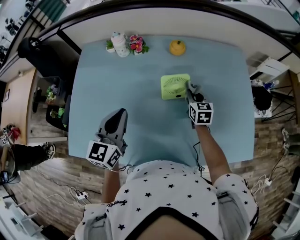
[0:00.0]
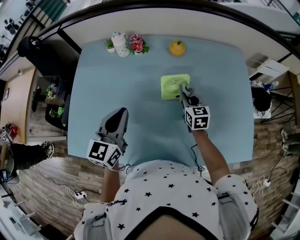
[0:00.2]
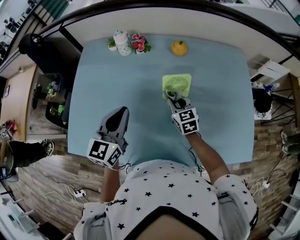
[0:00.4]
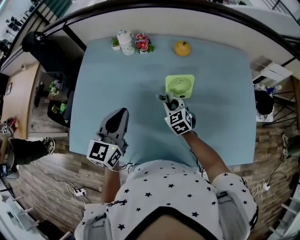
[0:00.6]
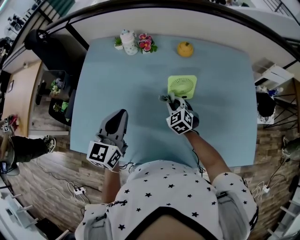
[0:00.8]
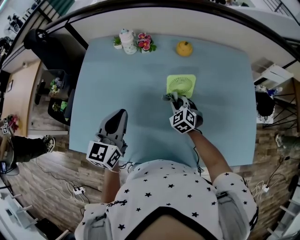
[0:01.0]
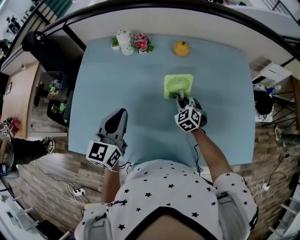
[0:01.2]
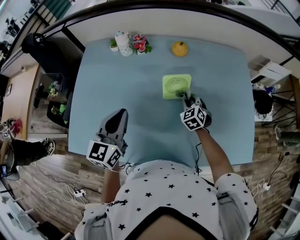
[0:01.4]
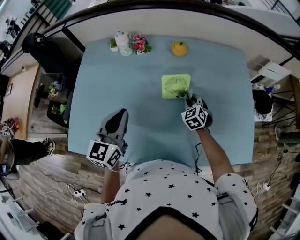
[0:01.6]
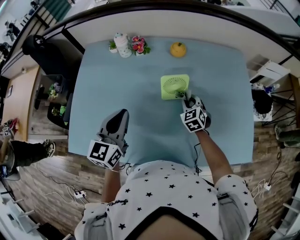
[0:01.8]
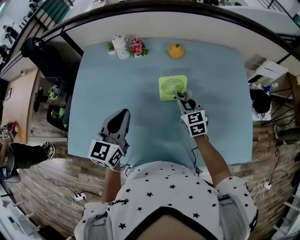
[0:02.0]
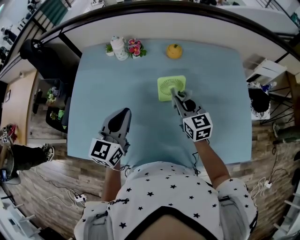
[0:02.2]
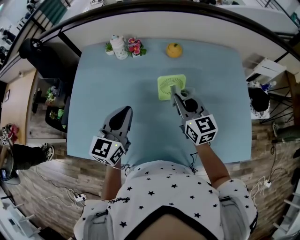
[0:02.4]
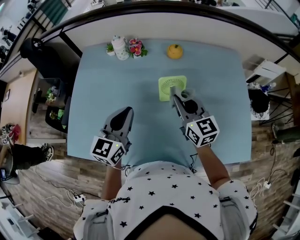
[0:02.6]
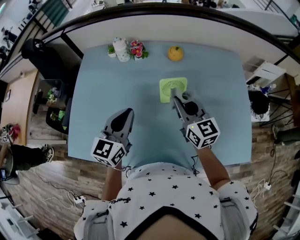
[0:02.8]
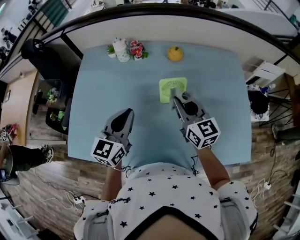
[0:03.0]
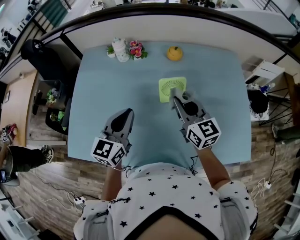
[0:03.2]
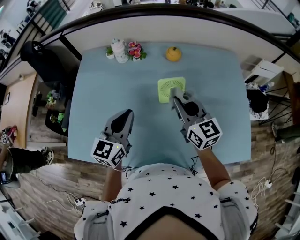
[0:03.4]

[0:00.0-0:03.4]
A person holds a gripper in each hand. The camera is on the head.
0:00.0 to 0:01.6: The right gripper reaches approximately 15 cm to the left, then returns, and turns by about 40 degrees.
0:01.6 to 0:03.4: The right gripper shifts about 20 cm upward, and tilts its fingers approximately 30 degrees upward.

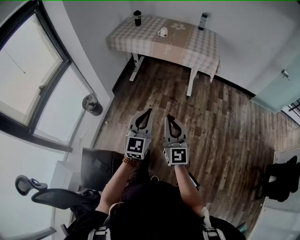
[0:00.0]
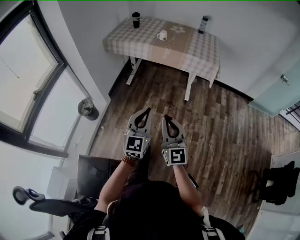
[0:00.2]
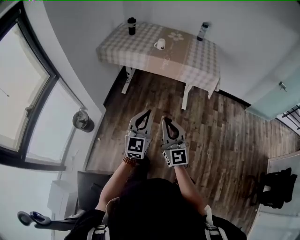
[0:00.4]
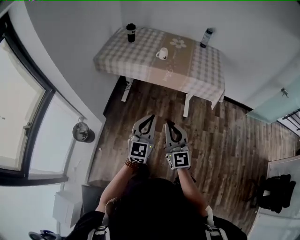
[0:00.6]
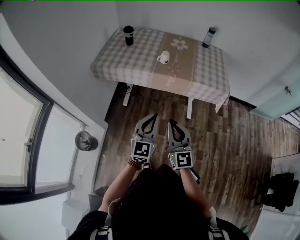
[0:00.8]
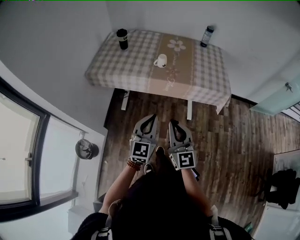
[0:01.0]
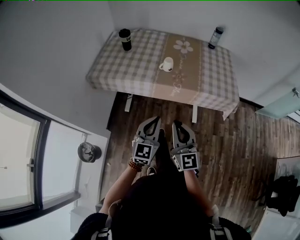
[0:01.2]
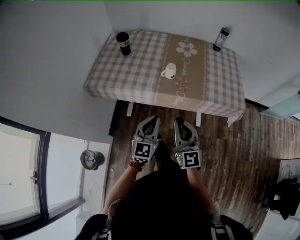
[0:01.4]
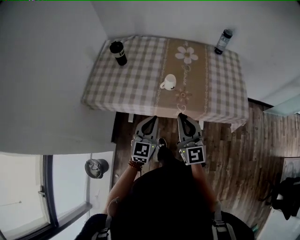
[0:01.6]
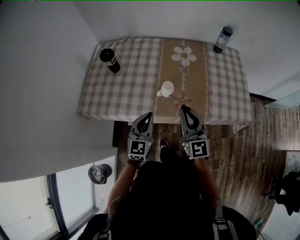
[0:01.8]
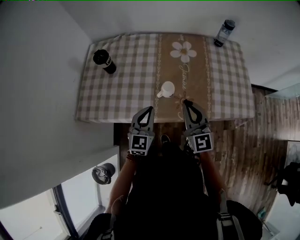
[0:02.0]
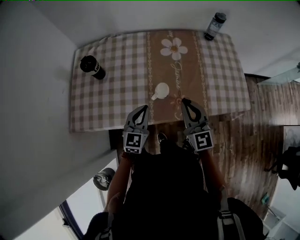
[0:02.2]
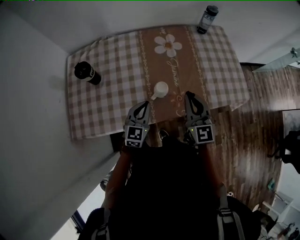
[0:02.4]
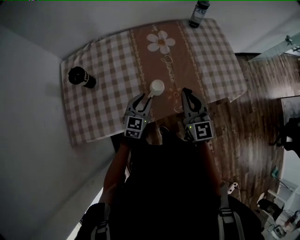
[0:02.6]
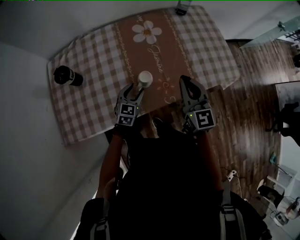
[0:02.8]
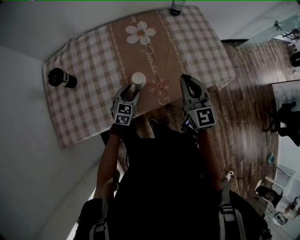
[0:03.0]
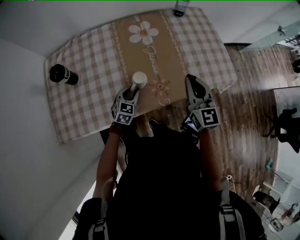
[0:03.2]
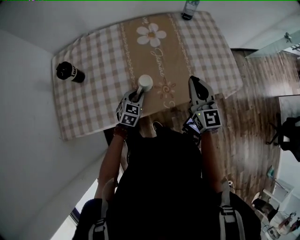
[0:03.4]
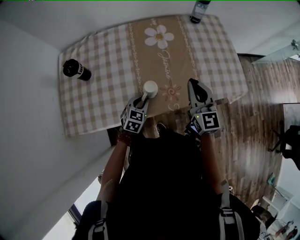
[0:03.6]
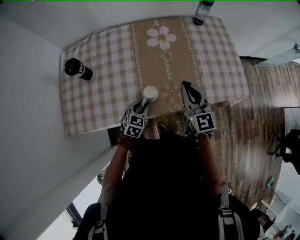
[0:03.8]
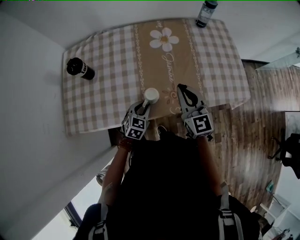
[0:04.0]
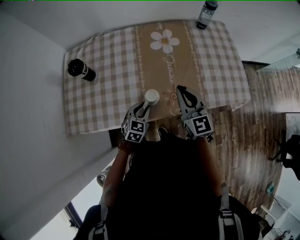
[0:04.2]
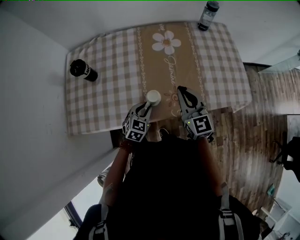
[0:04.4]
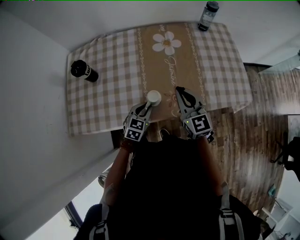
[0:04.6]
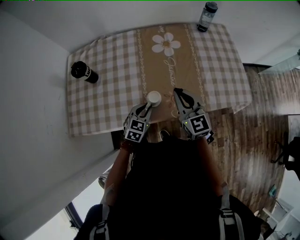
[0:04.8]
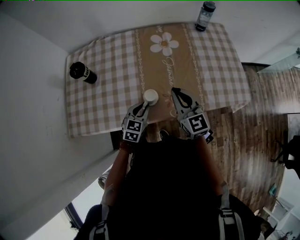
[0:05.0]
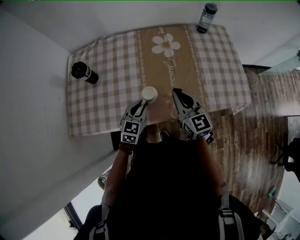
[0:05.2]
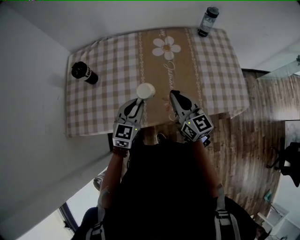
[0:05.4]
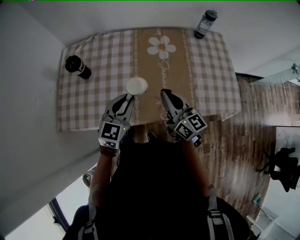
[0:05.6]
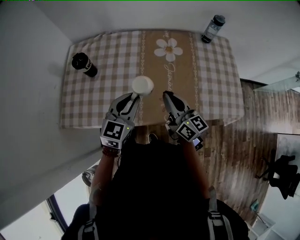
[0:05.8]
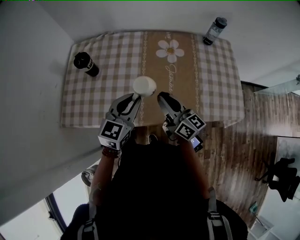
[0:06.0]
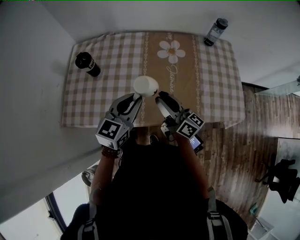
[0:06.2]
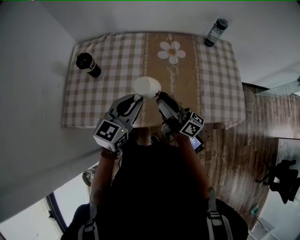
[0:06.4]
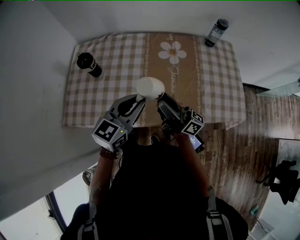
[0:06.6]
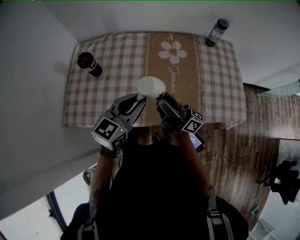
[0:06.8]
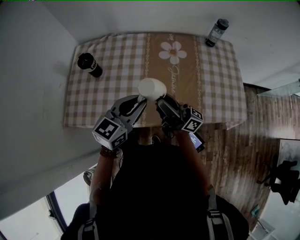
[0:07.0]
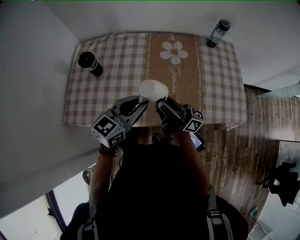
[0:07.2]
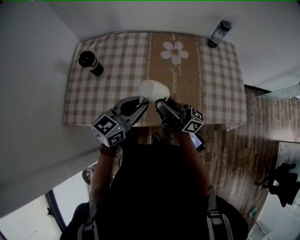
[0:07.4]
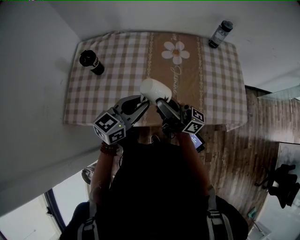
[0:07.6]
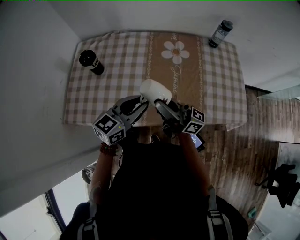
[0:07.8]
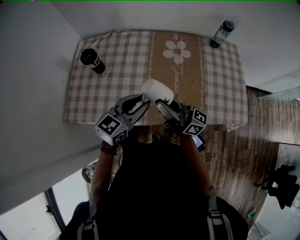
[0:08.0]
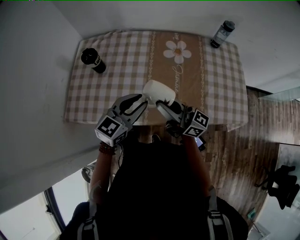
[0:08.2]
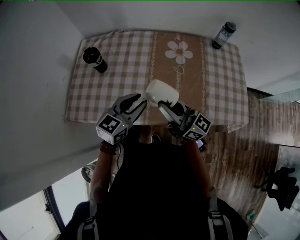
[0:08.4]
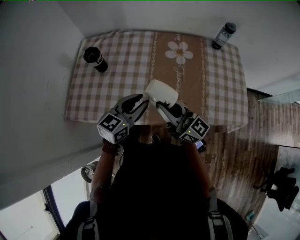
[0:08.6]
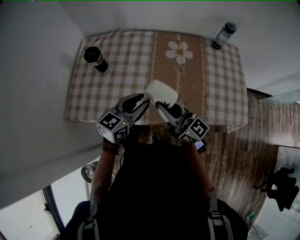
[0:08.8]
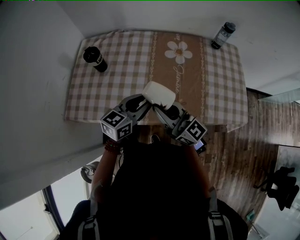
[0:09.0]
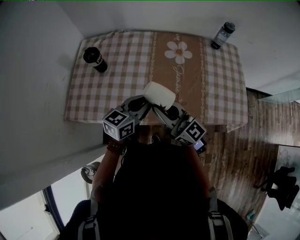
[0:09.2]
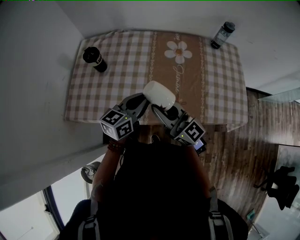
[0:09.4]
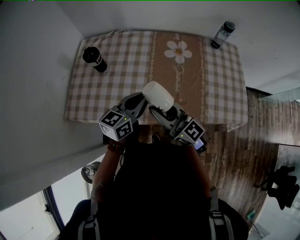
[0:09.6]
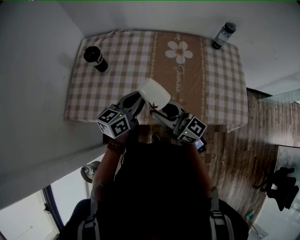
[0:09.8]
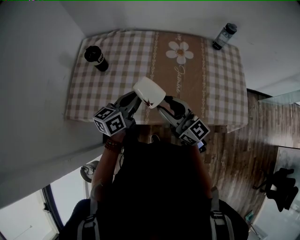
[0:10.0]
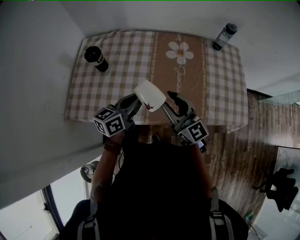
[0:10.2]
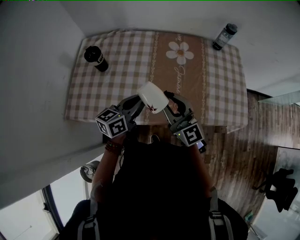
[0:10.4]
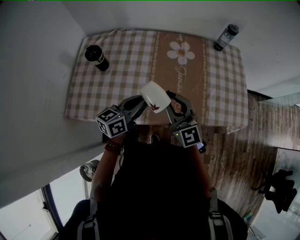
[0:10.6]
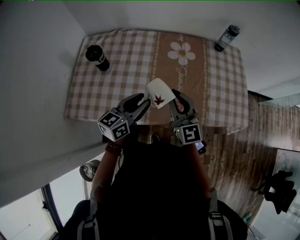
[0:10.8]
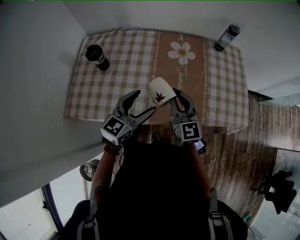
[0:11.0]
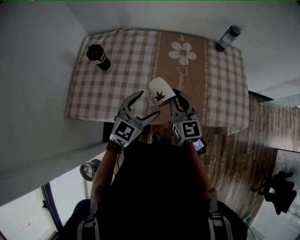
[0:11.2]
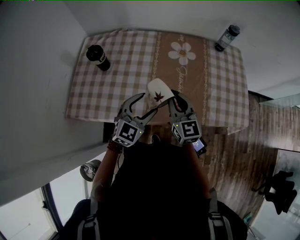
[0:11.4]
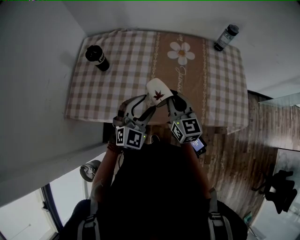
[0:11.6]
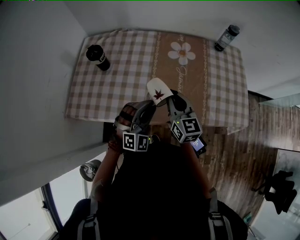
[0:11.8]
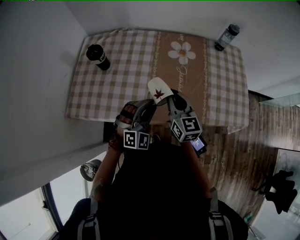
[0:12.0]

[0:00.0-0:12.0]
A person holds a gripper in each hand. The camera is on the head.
0:00.0 to 0:01.6: The two grippers travel together, forward, some 80 cm.
0:01.6 to 0:03.0: The left gripper changes place by about 30 cm, changes its angle by roughly 40 degrees, and opens; the right gripper shifts by approximately 25 cm, and turns by some 30 degrees.
0:03.0 to 0:04.4: The right gripper heads to the left, covering roughly 5 cm, while the left gripper is displaced backward by some 5 cm, and closes.
0:04.4 to 0:06.0: The right gripper travels to the left by some 5 cm, and swivels about 40 degrees. Meanwhile the left gripper moves upward, about 20 cm, and changes its angle by about 20 degrees.
0:06.0 to 0:07.6: The left gripper rotates approximately 20 degrees; the right gripper goes roughly 5 cm upward, and swivels about 40 degrees.
0:07.6 to 0:09.0: The right gripper rotates approximately 40 degrees.
0:09.0 to 0:10.4: The left gripper closes its fingers; the right gripper swivels about 30 degrees.
0:10.4 to 0:12.0: The left gripper changes place by some 5 cm, rolls clockwise, seen from behind, by about 80 degrees, and opens and closes again. The right gripper is displaced downward by approximately 5 cm, and rotates roughly 30 degrees.

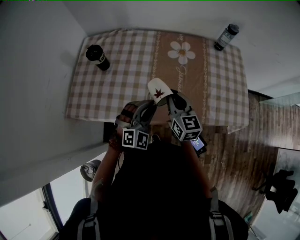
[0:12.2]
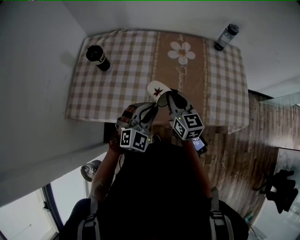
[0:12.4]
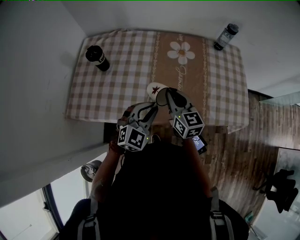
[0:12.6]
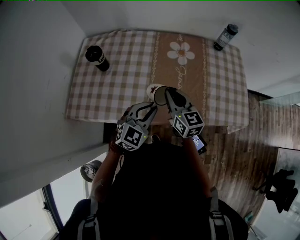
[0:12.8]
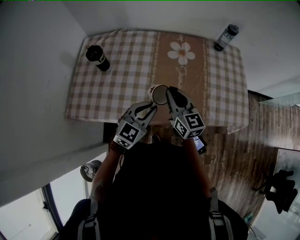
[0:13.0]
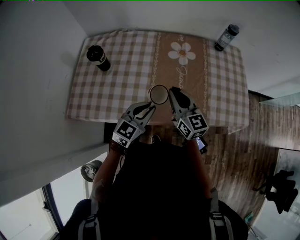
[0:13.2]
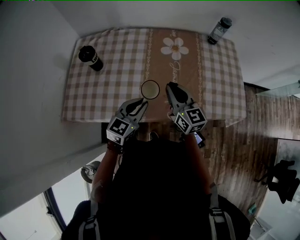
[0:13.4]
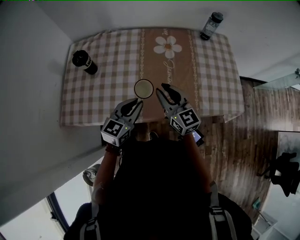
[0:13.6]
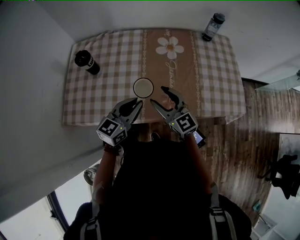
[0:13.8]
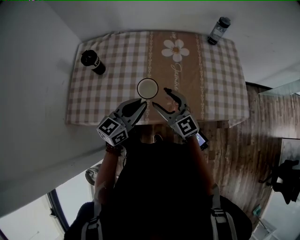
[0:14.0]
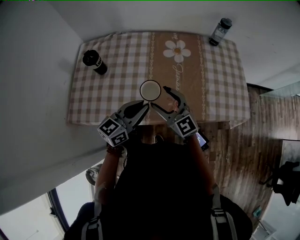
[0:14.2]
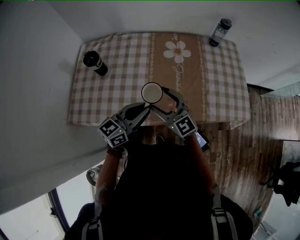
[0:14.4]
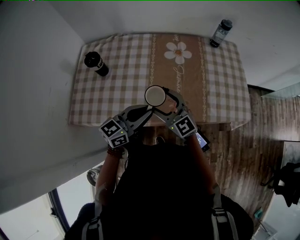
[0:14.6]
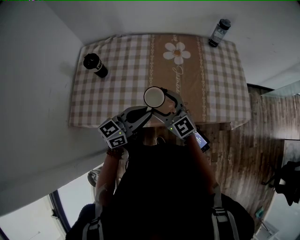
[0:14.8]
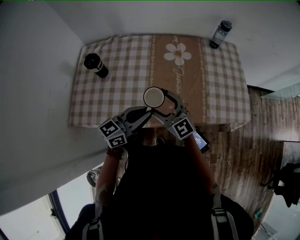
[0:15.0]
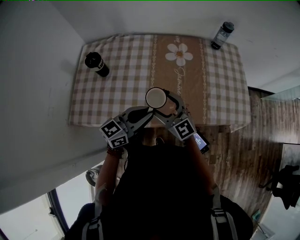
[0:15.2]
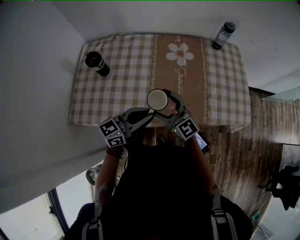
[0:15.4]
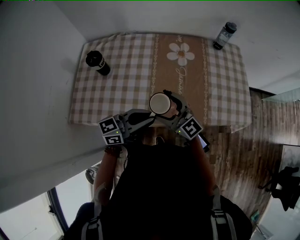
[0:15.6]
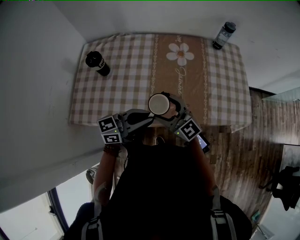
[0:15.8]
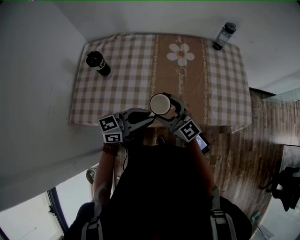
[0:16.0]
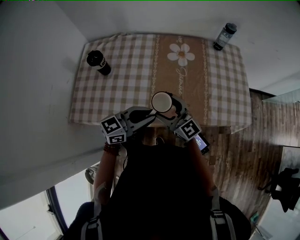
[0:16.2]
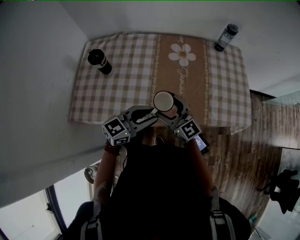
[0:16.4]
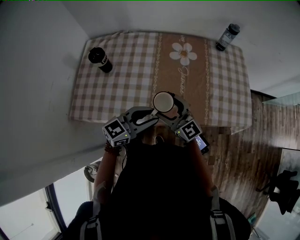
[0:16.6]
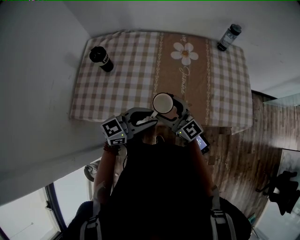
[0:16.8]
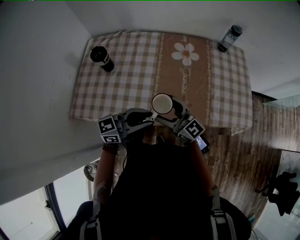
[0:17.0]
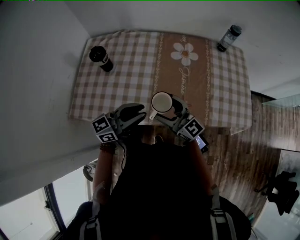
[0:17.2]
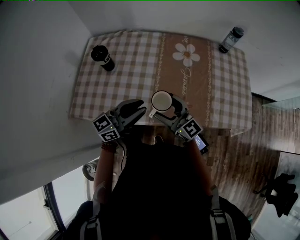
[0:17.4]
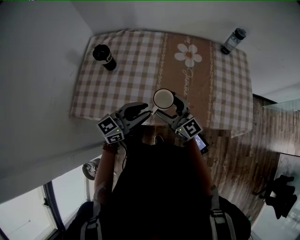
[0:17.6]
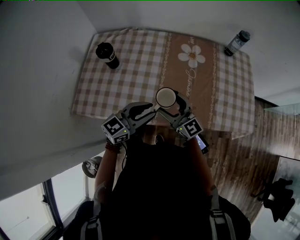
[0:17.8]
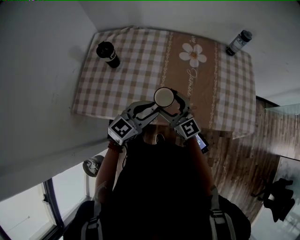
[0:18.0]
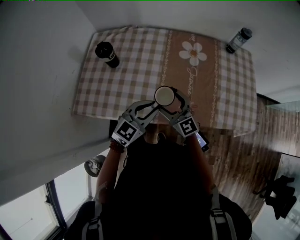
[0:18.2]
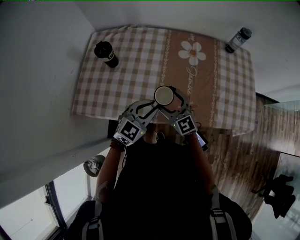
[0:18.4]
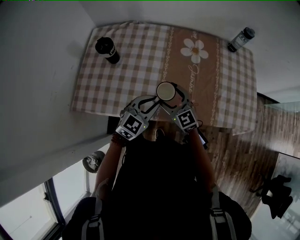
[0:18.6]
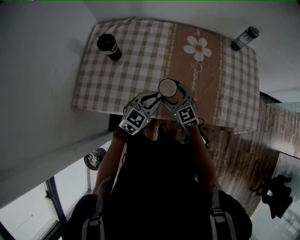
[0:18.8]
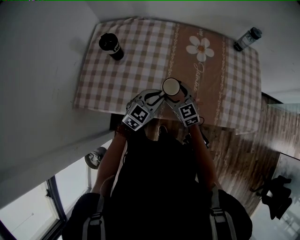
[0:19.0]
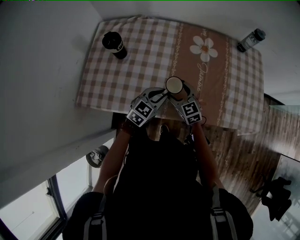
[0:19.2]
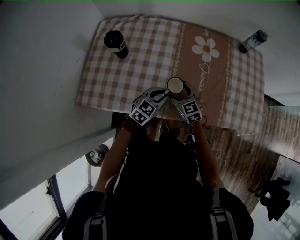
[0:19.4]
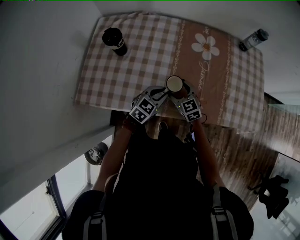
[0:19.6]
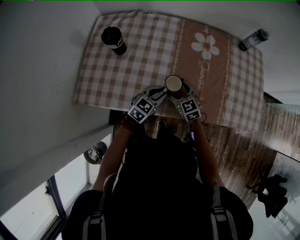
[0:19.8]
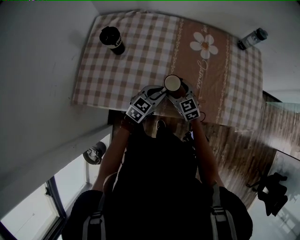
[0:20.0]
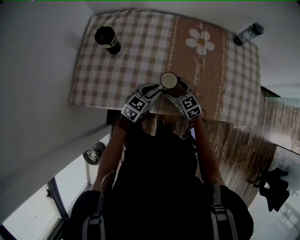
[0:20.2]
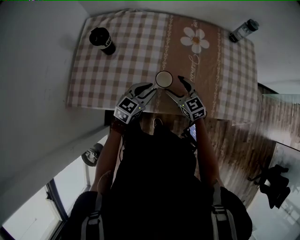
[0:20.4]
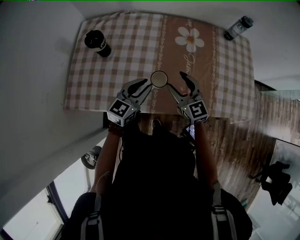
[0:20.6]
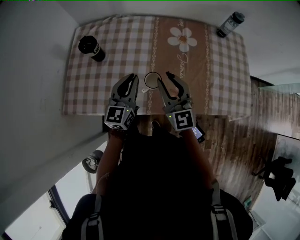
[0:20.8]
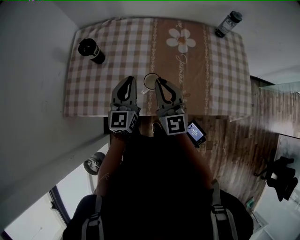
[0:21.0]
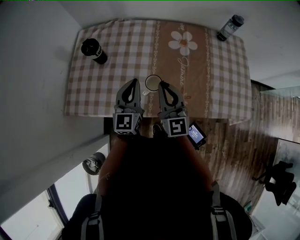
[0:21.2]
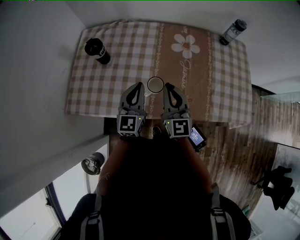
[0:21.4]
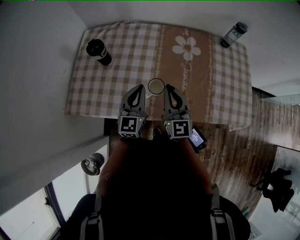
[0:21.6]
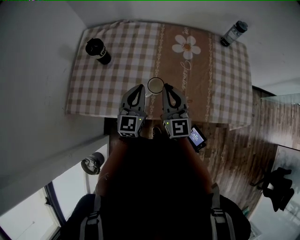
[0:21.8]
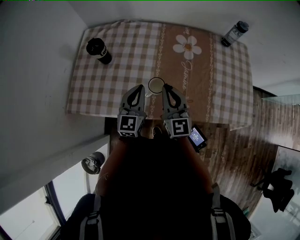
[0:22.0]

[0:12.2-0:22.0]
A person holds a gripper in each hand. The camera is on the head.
0:12.2 to 0:13.6: The left gripper rotates around the line of its fingers by roughly 50 degrees, counterclockwise from behind.
0:13.6 to 0:15.0: The left gripper goes roughly 5 cm upward, and changes its angle by approximately 20 degrees; the right gripper heads to the left, covering roughly 5 cm, changes its angle by approximately 20 degrees, and opens up.
0:15.0 to 0:16.4: The grippers make only small movements.
0:16.4 to 0:17.8: The left gripper moves some 5 cm.
0:17.8 to 0:19.2: The two grippers go about 15 cm downward and forward. The left gripper turns by approximately 30 degrees; the right gripper swivels some 30 degrees.
0:19.2 to 0:20.6: The right gripper is displaced upward and to the right by approximately 10 cm. Meanwhile the left gripper moves upward, some 5 cm.
0:20.6 to 0:22.0: The left gripper rotates roughly 30 degrees, and closes its fingers, while the right gripper heads upward, covering approximately 5 cm, and closes up.
